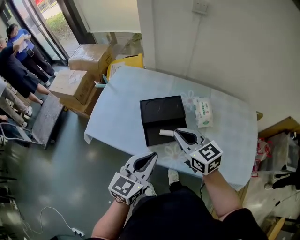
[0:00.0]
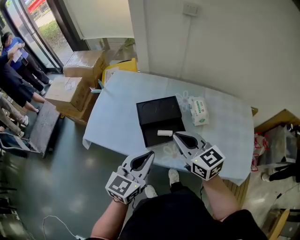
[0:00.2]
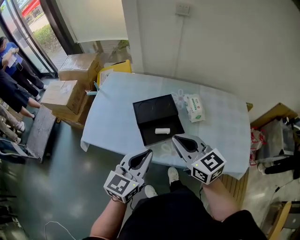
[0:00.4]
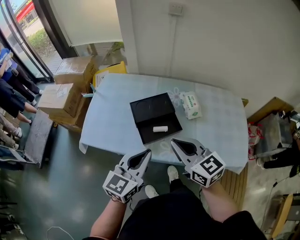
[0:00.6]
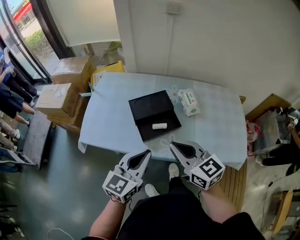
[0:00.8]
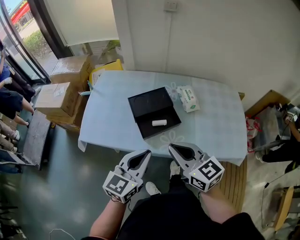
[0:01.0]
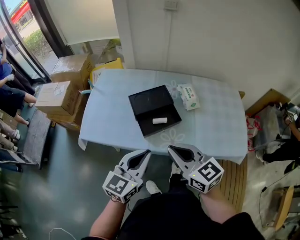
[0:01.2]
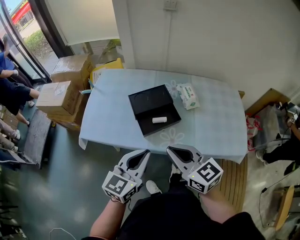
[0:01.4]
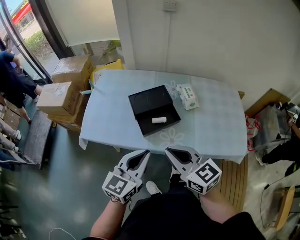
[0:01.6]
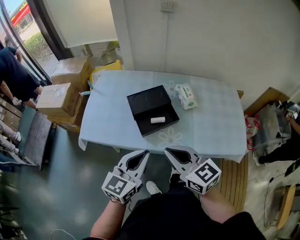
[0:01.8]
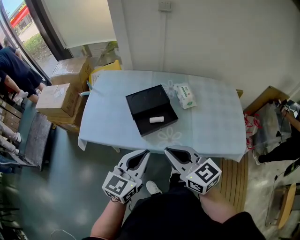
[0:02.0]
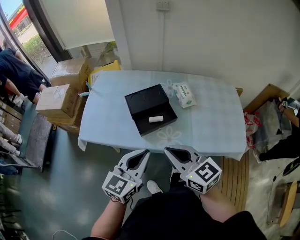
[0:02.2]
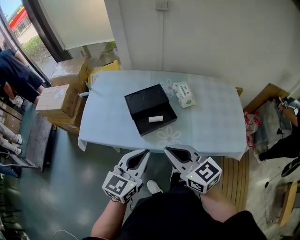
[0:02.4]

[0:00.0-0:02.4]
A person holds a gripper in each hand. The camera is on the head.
0:00.0 to 0:01.2: The right gripper goes some 15 cm backward. Meanwhile the left gripper shifts about 5 cm backward.
0:01.2 to 0:02.4: The grippers make only small movements.

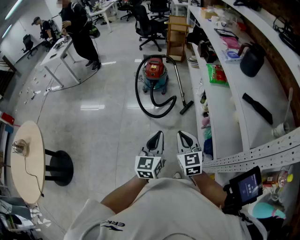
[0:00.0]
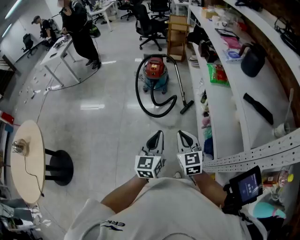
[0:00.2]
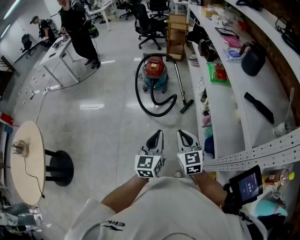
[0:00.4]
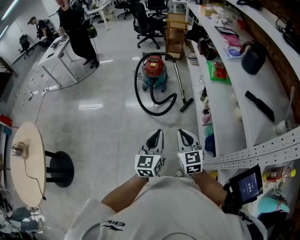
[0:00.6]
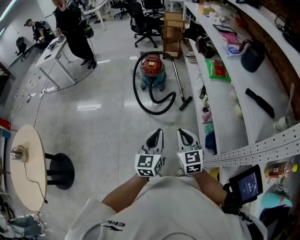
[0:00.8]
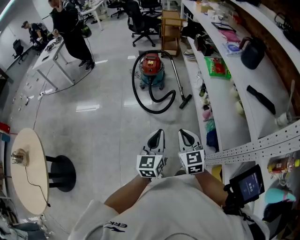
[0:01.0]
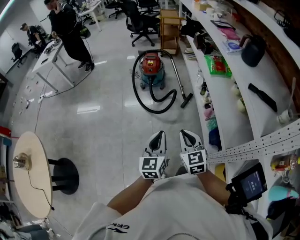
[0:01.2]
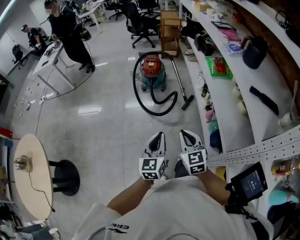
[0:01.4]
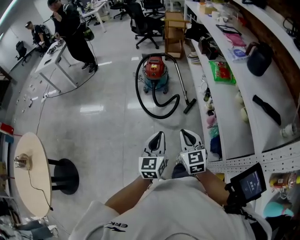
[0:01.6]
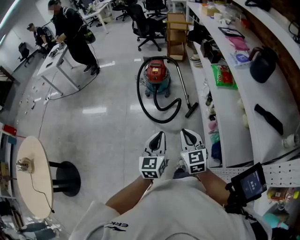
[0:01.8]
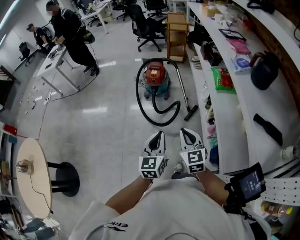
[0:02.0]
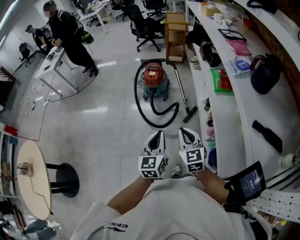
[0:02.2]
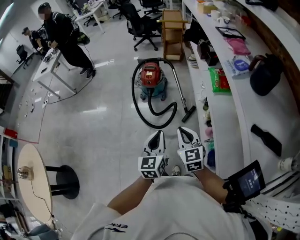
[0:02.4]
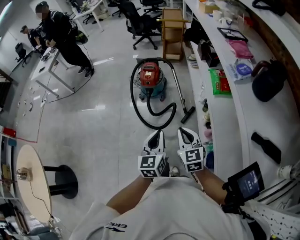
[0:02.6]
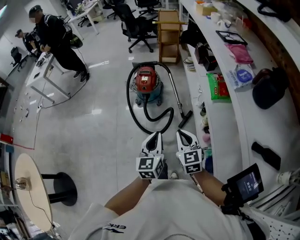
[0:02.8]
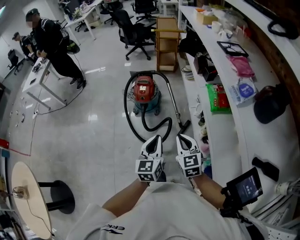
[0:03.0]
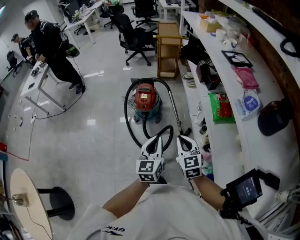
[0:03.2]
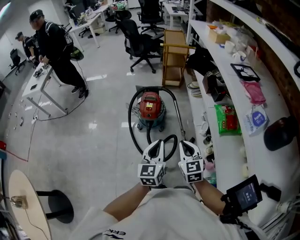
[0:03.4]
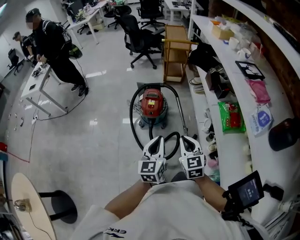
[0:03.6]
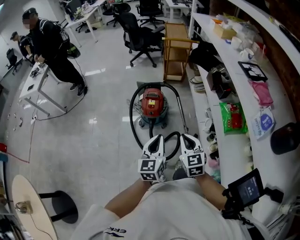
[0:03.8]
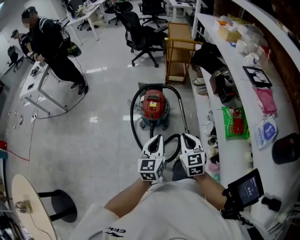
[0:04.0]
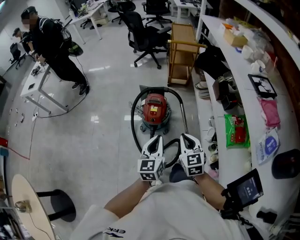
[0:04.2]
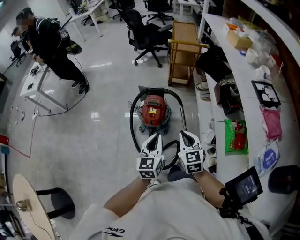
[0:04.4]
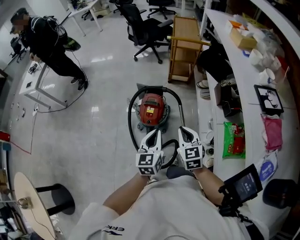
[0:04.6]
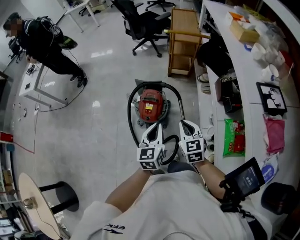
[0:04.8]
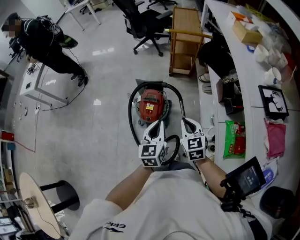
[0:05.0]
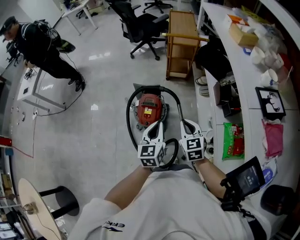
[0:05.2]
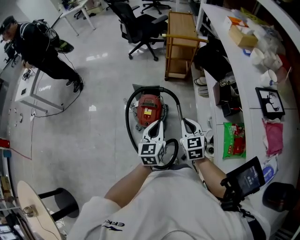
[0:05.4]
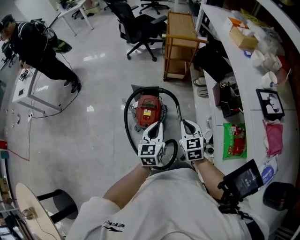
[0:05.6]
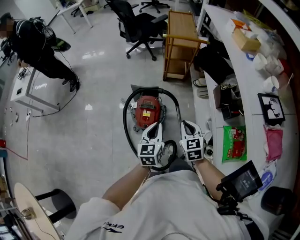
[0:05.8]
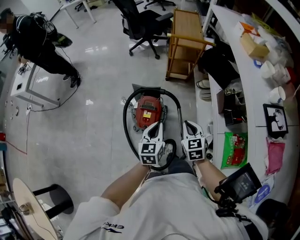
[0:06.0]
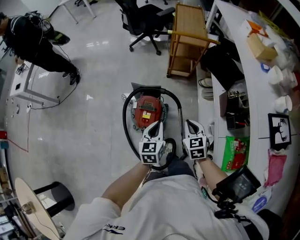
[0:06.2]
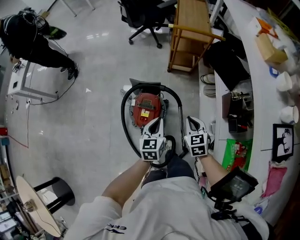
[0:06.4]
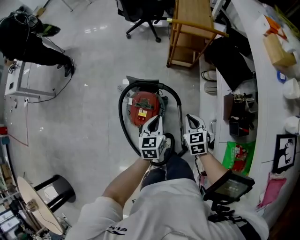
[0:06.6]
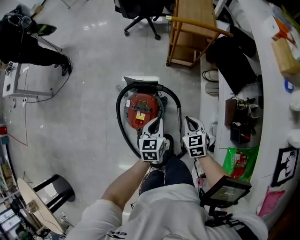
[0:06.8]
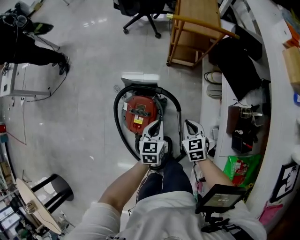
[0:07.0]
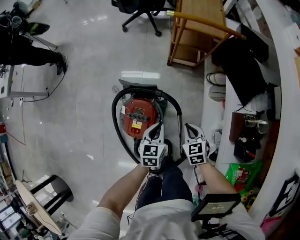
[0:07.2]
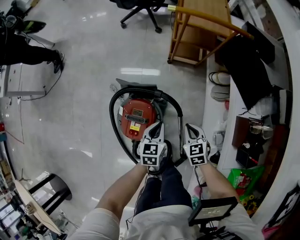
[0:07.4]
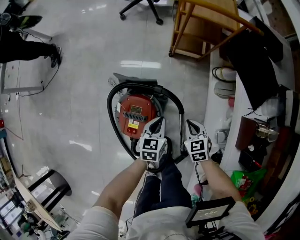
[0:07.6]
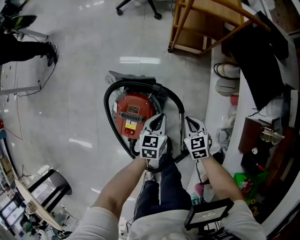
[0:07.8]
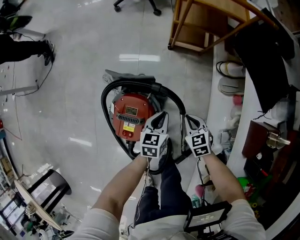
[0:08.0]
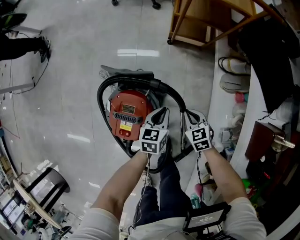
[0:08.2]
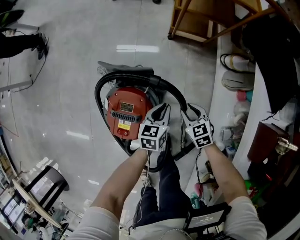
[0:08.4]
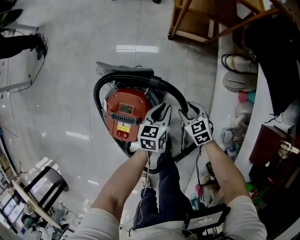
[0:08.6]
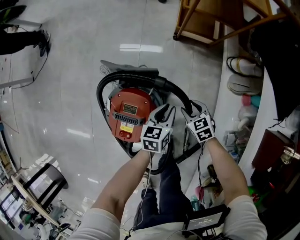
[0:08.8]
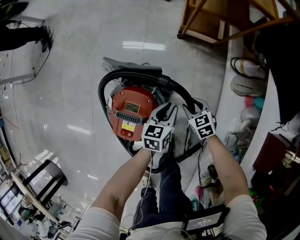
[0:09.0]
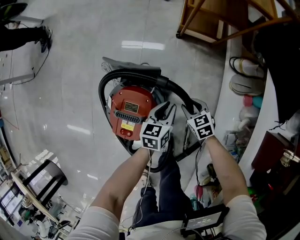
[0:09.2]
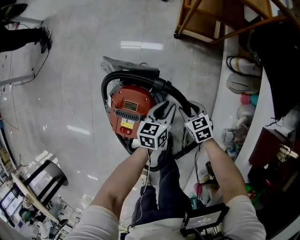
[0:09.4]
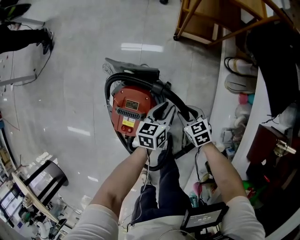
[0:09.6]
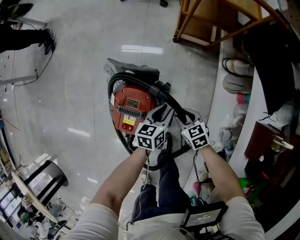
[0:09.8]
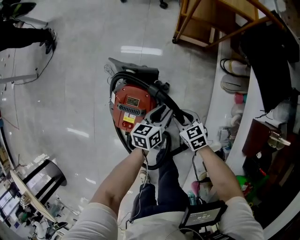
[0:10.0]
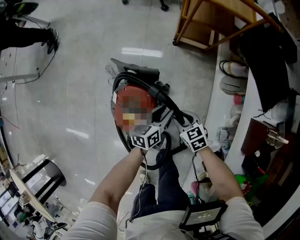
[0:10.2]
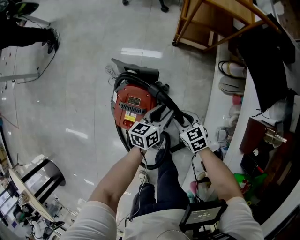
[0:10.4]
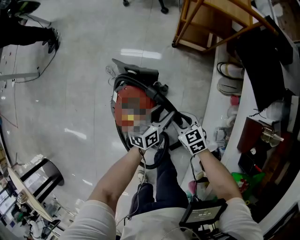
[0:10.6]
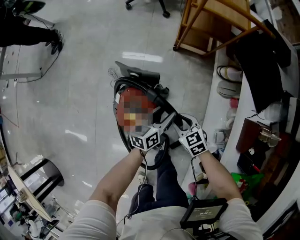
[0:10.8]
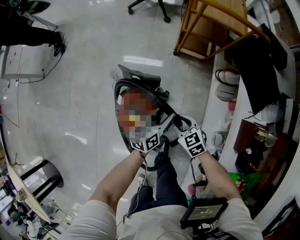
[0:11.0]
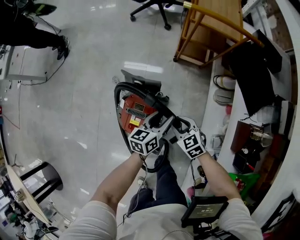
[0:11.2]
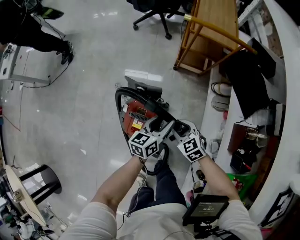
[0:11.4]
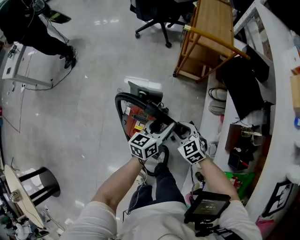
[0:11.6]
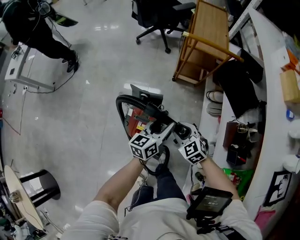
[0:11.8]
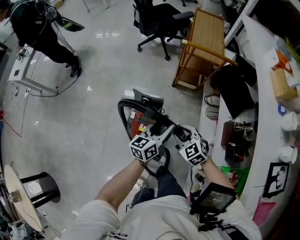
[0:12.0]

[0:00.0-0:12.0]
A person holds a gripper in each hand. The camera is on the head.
0:00.0 to 0:01.6: The left gripper heads forward and to the left, covering roughly 10 cm; the right gripper goes some 5 cm forward.
0:01.6 to 0:03.0: Both grippers travel together forward, approximately 30 cm.
0:03.0 to 0:04.4: Both grippers move forward, approximately 35 cm.
0:04.4 to 0:06.0: Both grippers travel together forward, some 20 cm.
0:06.0 to 0:07.6: Both grippers travel together downward and forward, approximately 40 cm.
0:07.6 to 0:09.0: Both grippers move downward, about 15 cm. The right gripper opens.
0:09.0 to 0:10.4: The left gripper shifts roughly 10 cm upward. The right gripper heads upward and backward, covering some 15 cm.
0:10.4 to 0:12.0: The two grippers go approximately 30 cm upward. The right gripper rotates roughly 30 degrees.

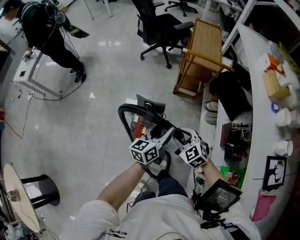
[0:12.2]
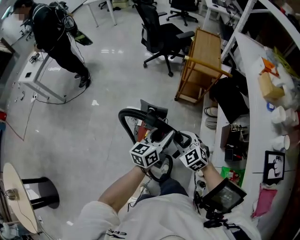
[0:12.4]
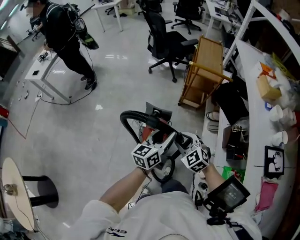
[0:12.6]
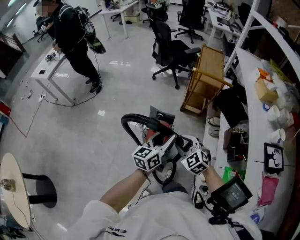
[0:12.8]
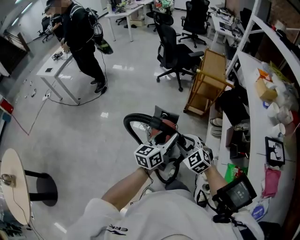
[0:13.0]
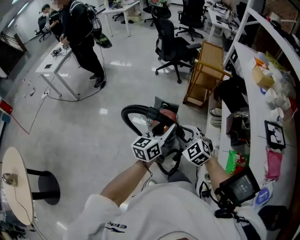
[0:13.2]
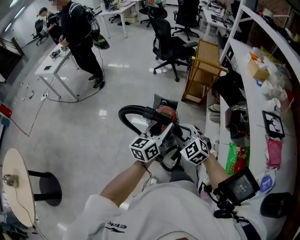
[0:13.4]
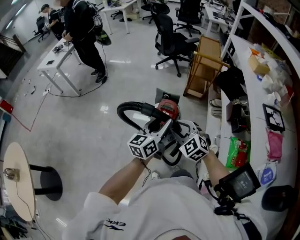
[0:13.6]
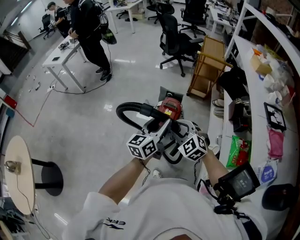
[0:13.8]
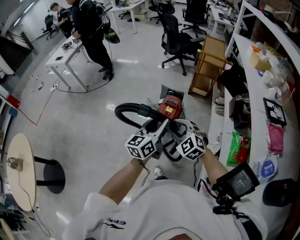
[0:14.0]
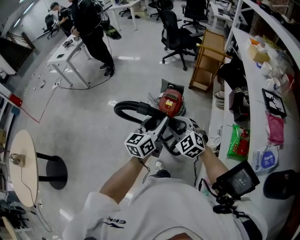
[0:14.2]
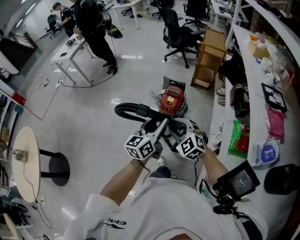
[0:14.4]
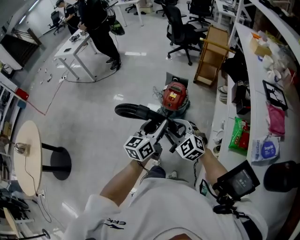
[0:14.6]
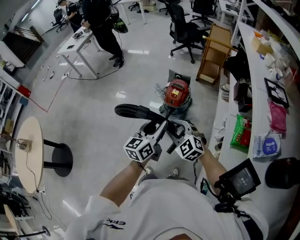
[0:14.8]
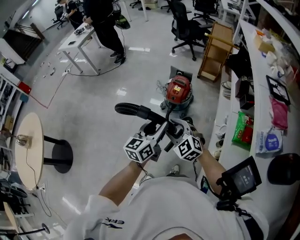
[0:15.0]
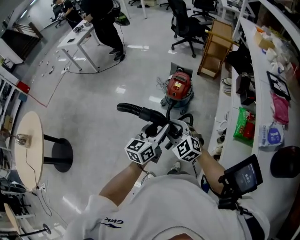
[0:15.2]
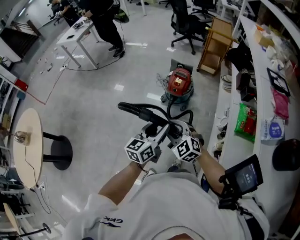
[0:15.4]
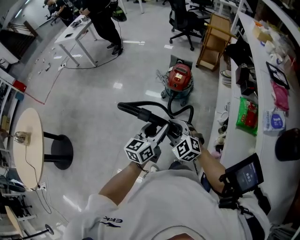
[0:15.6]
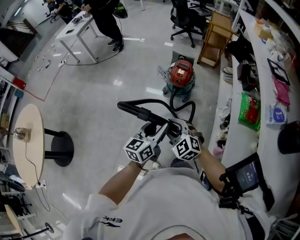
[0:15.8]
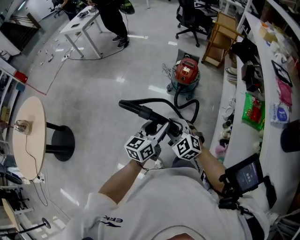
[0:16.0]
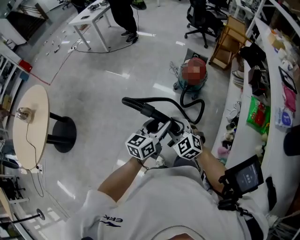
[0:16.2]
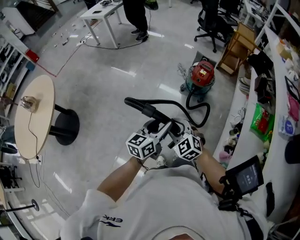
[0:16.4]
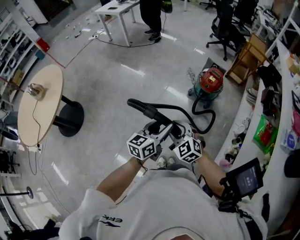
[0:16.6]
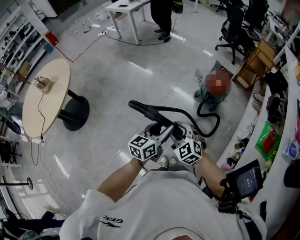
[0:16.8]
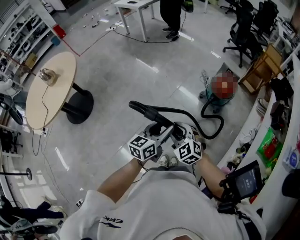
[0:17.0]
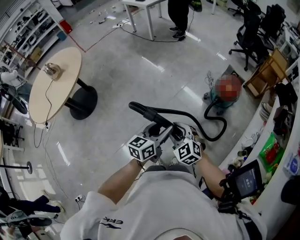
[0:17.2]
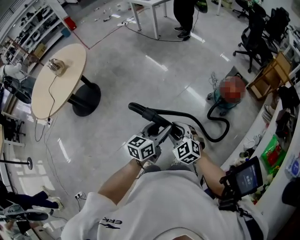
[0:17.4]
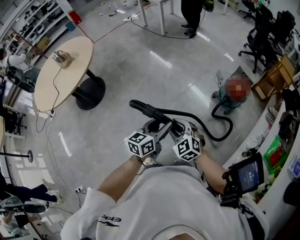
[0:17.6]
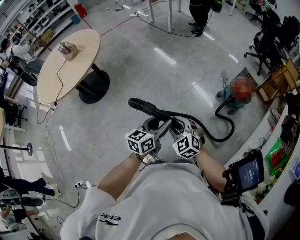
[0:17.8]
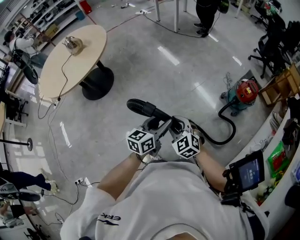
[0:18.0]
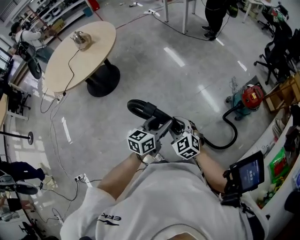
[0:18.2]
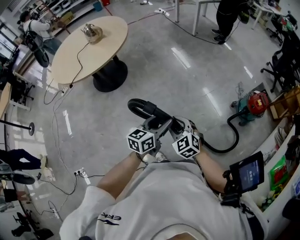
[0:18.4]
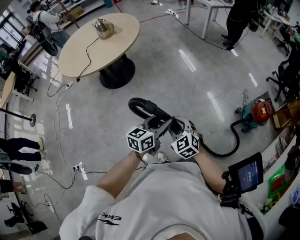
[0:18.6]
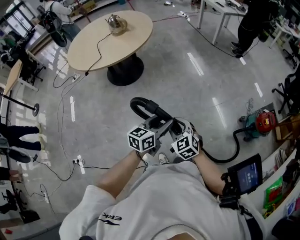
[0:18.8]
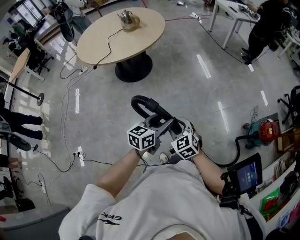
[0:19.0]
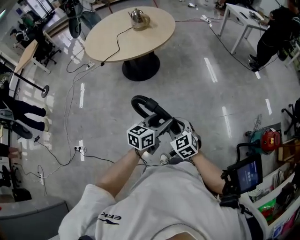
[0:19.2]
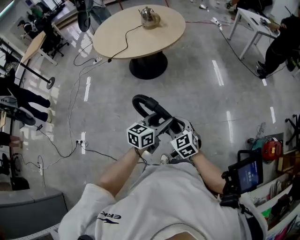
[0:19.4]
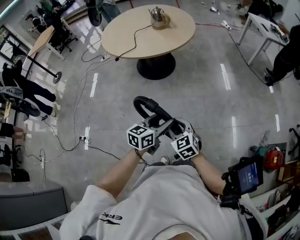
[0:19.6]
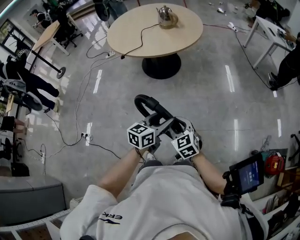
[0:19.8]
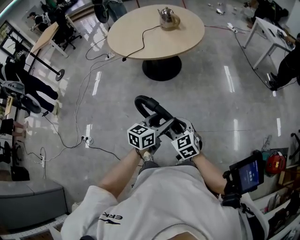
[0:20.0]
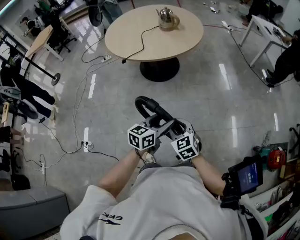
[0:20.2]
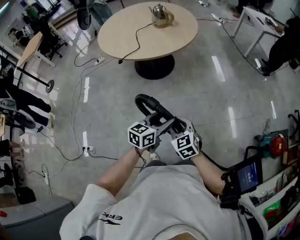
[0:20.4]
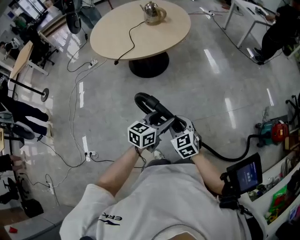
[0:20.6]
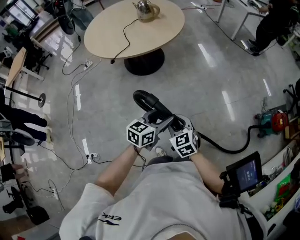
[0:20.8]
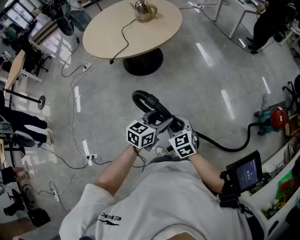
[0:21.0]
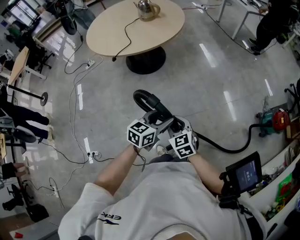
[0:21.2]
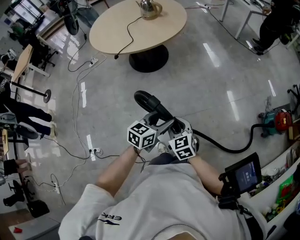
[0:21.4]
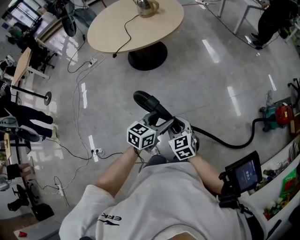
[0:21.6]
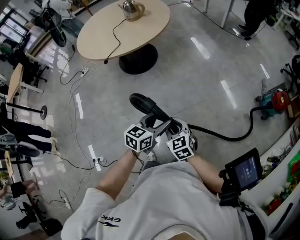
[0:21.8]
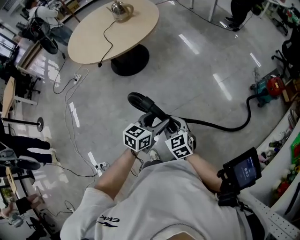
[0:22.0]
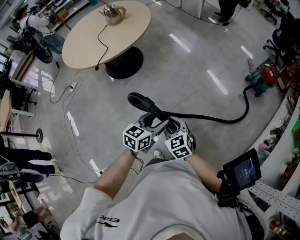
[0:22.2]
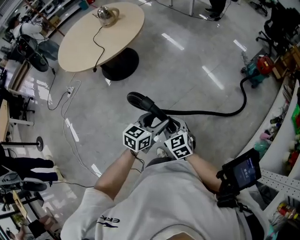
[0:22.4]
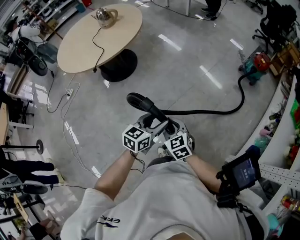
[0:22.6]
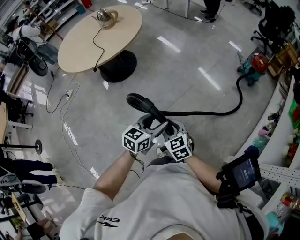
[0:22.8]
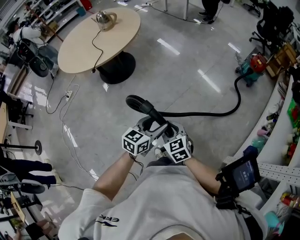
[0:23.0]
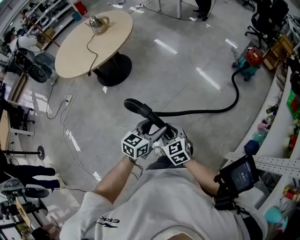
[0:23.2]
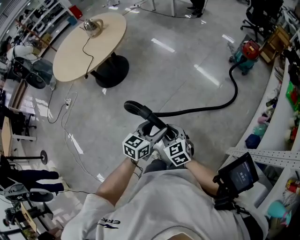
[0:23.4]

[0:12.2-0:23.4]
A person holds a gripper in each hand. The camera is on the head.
0:12.2 to 0:13.8: The grippers both shift backward, to the left and upward by roughly 40 cm.
0:13.8 to 0:15.4: Both grippers travel together backward, some 25 cm.
0:15.4 to 0:17.0: The two grippers go approximately 25 cm to the left and backward.
0:17.0 to 0:18.6: The grippers both shift to the left by roughly 35 cm. The left gripper rotates approximately 20 degrees.
0:18.6 to 0:20.2: Both grippers travel together to the left, approximately 20 cm.
0:20.2 to 0:21.8: Both grippers move backward and to the left, some 15 cm. The left gripper rotates approximately 20 degrees. Meanwhile the right gripper swivels about 20 degrees.
0:21.8 to 0:23.4: Both grippers move backward, some 20 cm. The left gripper turns by roughly 20 degrees, while the right gripper swivels some 20 degrees.
